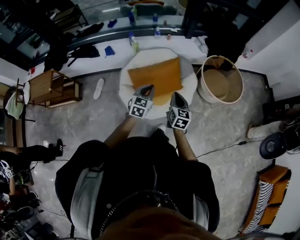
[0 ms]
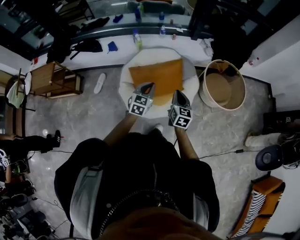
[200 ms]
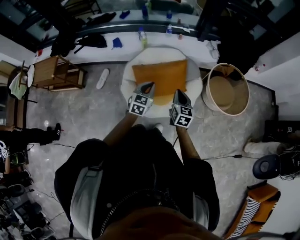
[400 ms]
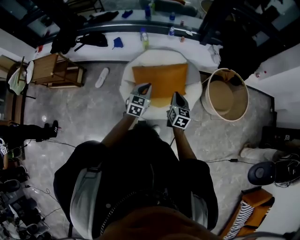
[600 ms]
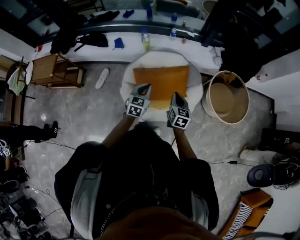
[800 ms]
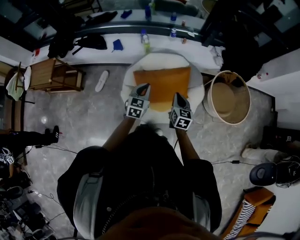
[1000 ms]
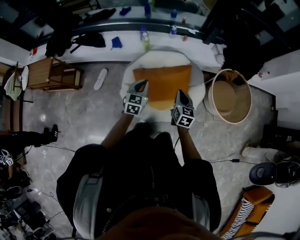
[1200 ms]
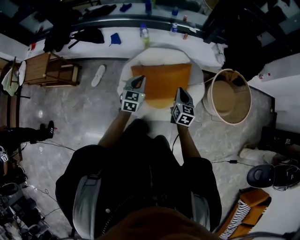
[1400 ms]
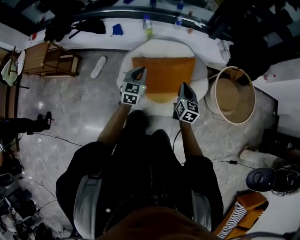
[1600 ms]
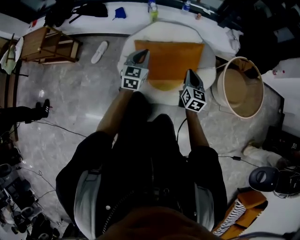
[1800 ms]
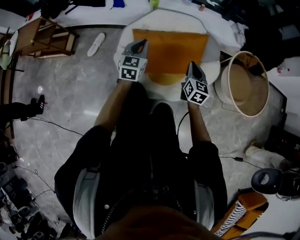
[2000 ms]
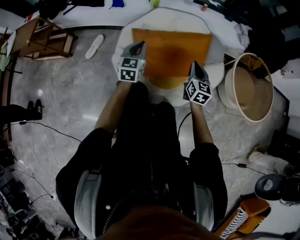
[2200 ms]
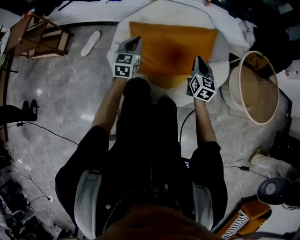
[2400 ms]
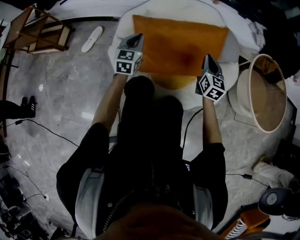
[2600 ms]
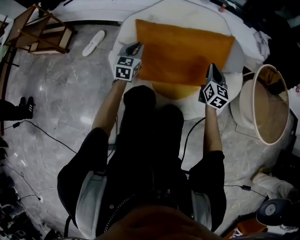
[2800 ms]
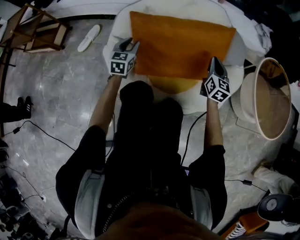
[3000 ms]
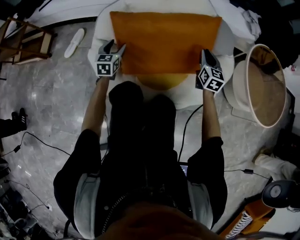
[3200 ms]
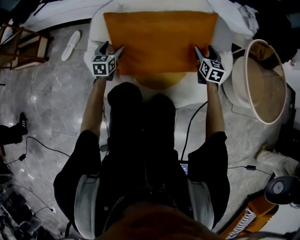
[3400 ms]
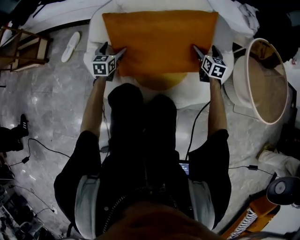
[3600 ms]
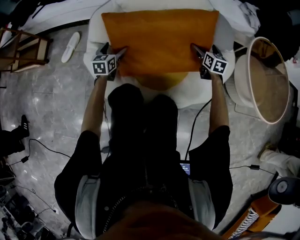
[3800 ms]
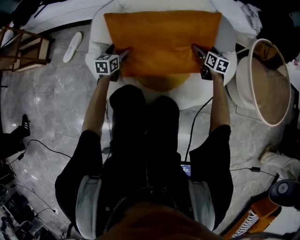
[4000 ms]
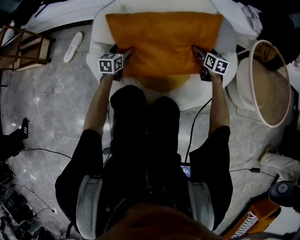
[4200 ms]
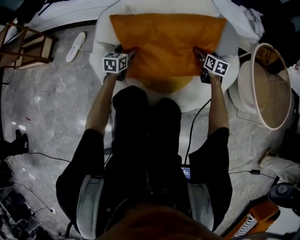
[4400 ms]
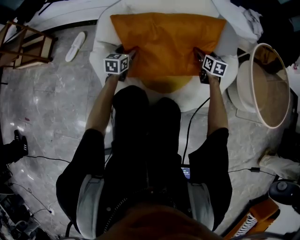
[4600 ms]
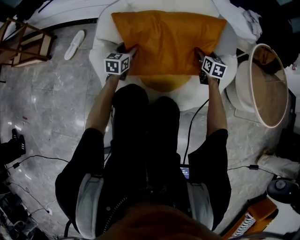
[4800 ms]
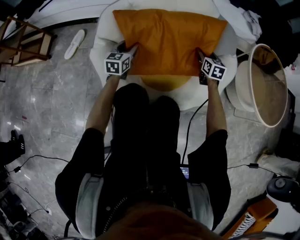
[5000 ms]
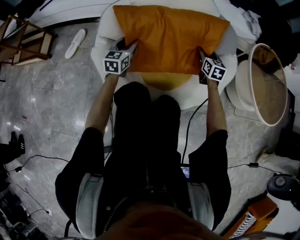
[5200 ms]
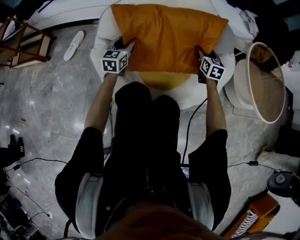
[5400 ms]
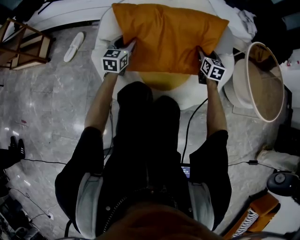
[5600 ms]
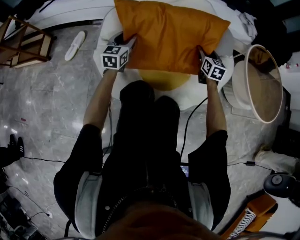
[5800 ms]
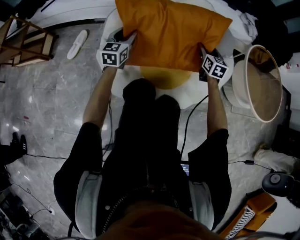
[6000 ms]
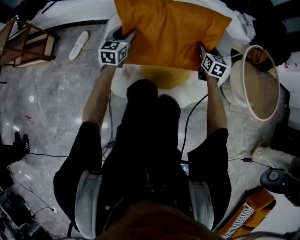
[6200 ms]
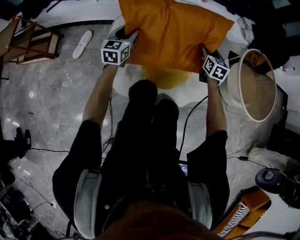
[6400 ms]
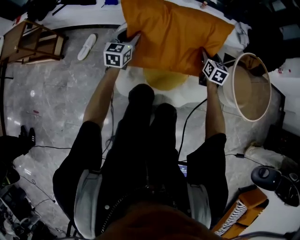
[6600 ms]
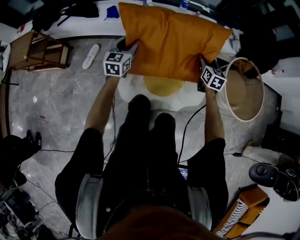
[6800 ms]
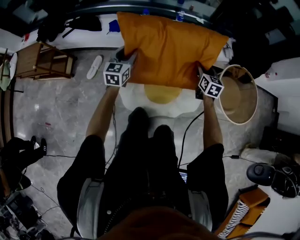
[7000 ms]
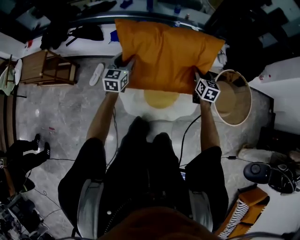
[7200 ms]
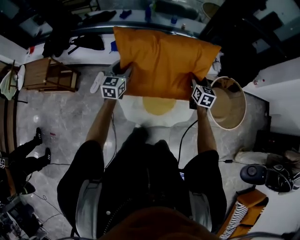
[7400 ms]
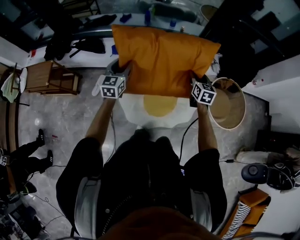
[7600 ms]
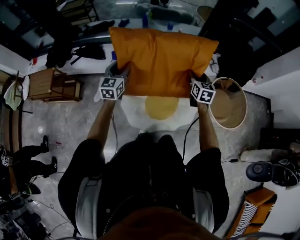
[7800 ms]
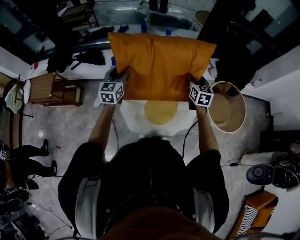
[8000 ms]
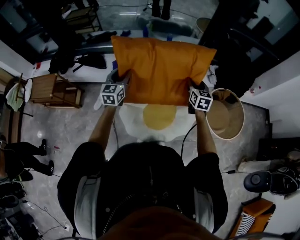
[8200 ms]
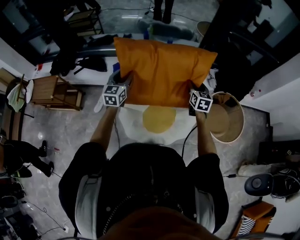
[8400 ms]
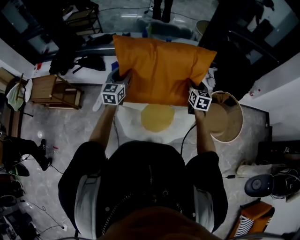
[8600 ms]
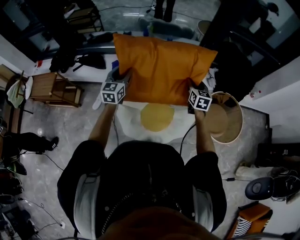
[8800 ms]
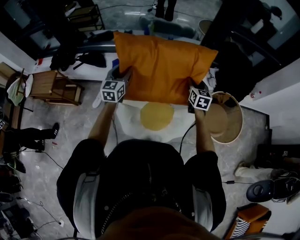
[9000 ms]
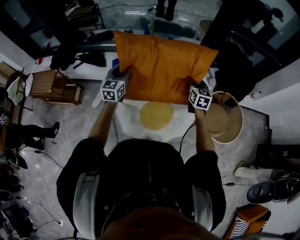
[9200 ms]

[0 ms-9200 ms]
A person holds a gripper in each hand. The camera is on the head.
0 ms to 1600 ms: The right gripper shifts about 20 cm forward and downward, while the left gripper goes roughly 20 cm forward, to the left and downward.
1600 ms to 3000 ms: Both grippers move downward, roughly 40 cm.
3000 ms to 4600 ms: The right gripper travels downward and forward by approximately 15 cm, changes its angle by some 20 degrees, and opens. The left gripper shifts some 10 cm downward, and opens and closes again.
4600 ms to 6200 ms: The two grippers go about 15 cm upward.
6200 ms to 7600 ms: Both grippers move upward, approximately 50 cm.
7600 ms to 9200 ms: The grippers both shift to the right by some 5 cm.

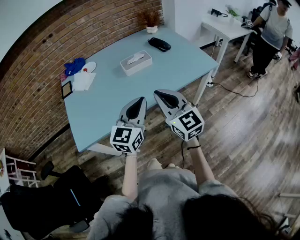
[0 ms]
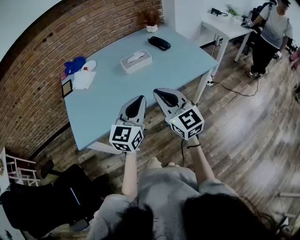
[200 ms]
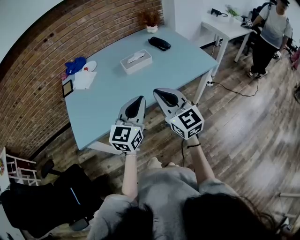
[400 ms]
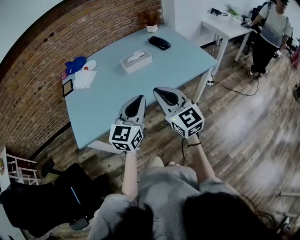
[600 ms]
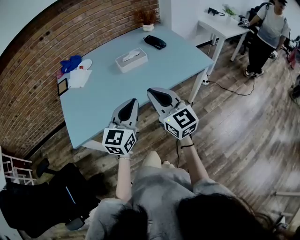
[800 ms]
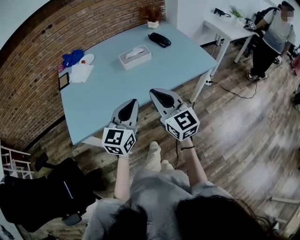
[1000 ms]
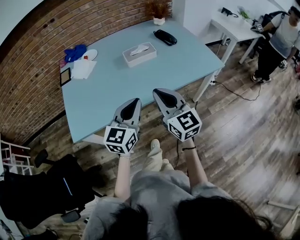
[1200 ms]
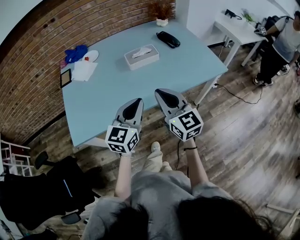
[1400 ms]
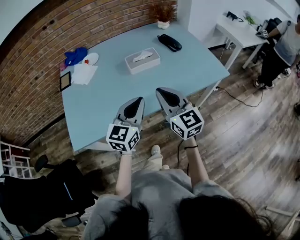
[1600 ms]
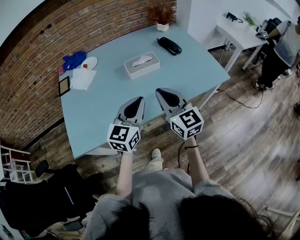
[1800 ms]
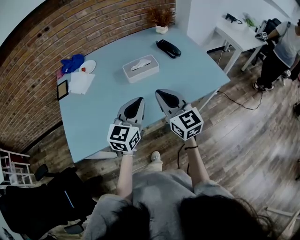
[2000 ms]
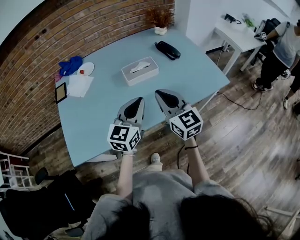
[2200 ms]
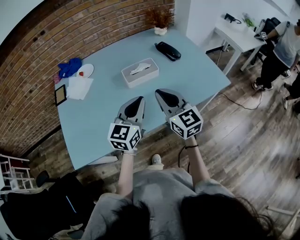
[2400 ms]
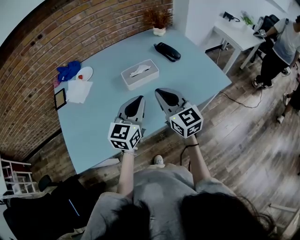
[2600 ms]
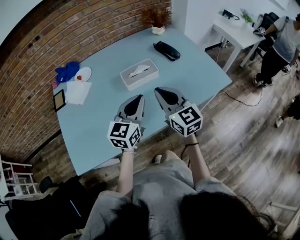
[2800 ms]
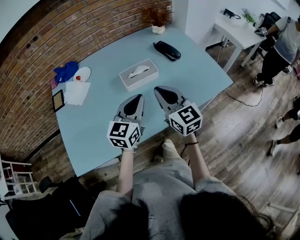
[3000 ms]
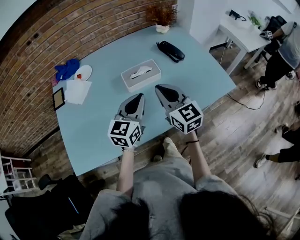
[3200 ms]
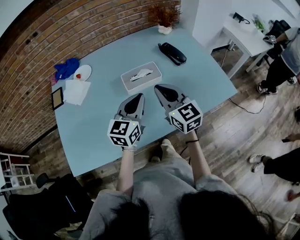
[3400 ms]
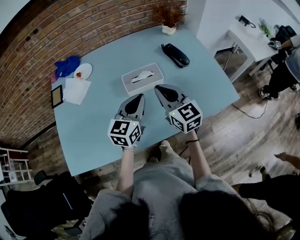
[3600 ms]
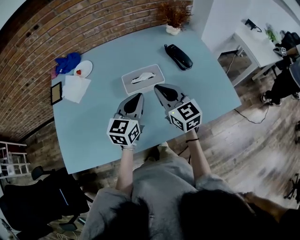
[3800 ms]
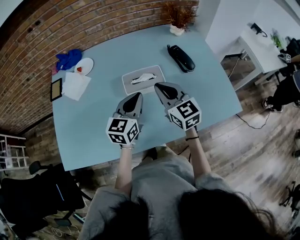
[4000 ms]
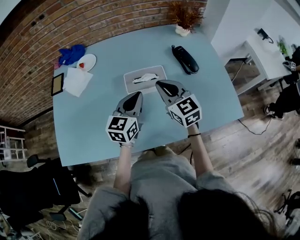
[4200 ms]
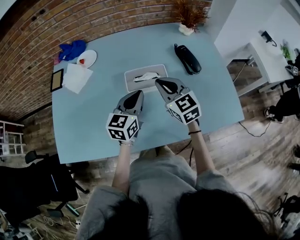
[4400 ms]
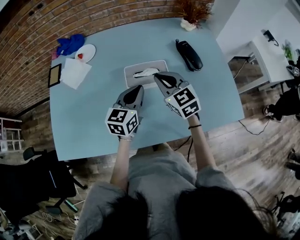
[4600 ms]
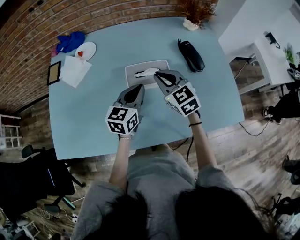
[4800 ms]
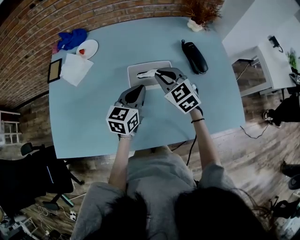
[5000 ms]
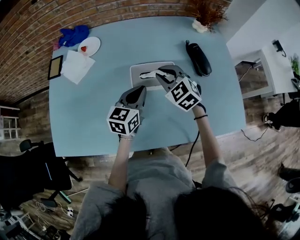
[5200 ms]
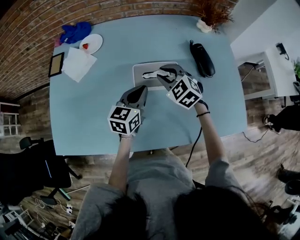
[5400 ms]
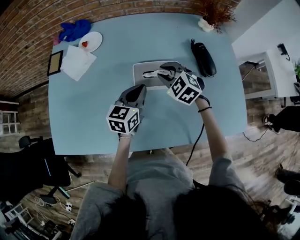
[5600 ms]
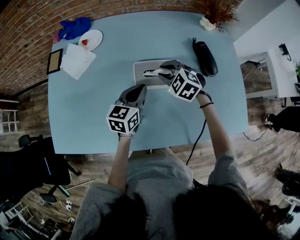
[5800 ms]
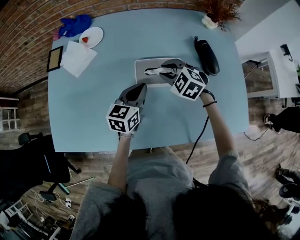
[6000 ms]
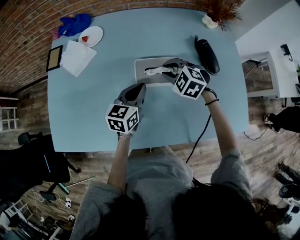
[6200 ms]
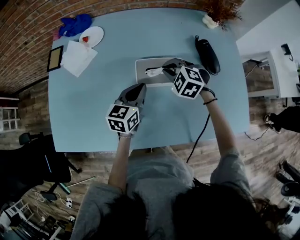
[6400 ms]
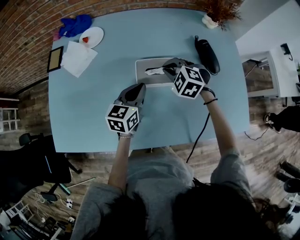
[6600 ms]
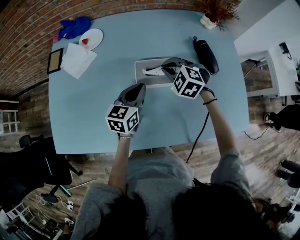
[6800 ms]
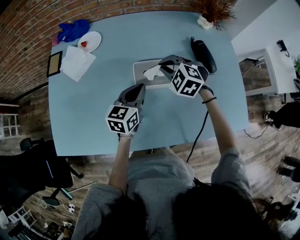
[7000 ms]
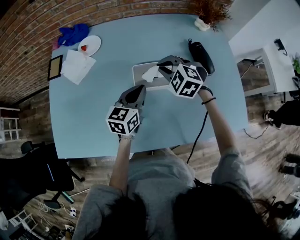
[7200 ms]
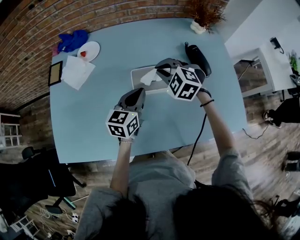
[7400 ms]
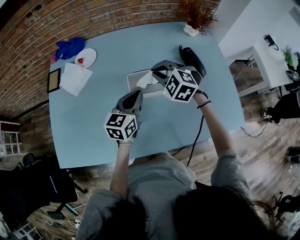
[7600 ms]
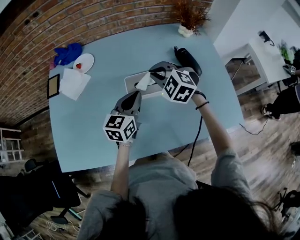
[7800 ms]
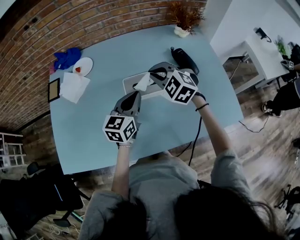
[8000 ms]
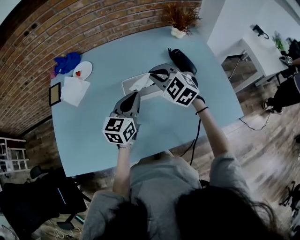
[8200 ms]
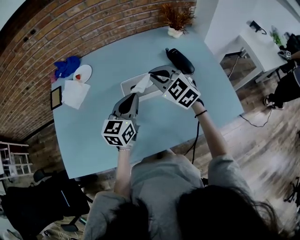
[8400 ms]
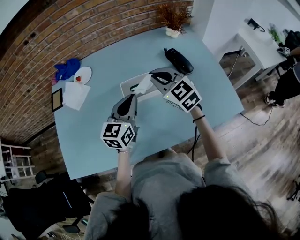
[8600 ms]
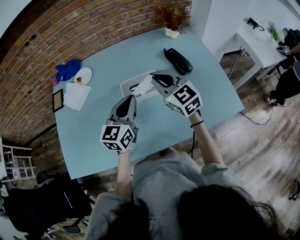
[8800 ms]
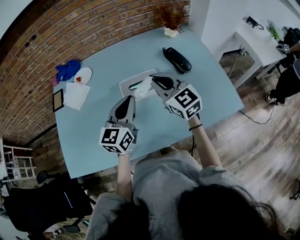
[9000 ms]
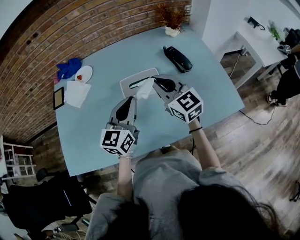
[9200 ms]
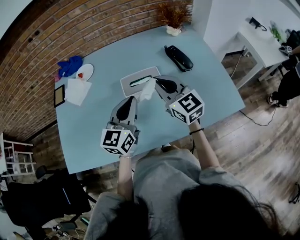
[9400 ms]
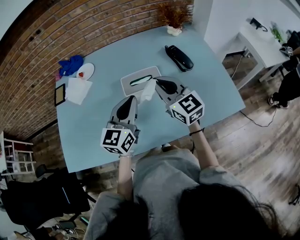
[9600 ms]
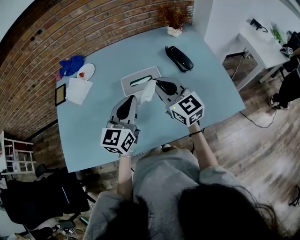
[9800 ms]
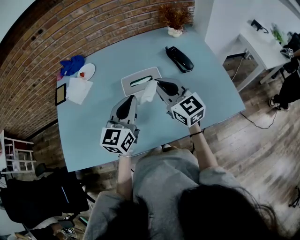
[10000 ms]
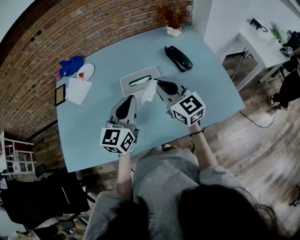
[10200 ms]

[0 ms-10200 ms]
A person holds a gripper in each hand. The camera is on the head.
0 ms to 1400 ms: The left gripper shifts by roughly 5 cm, while the right gripper is displaced forward by approximately 5 cm.
1400 ms to 3000 ms: Both grippers move forward, about 20 cm.
3000 ms to 4400 ms: The right gripper shifts some 15 cm forward, and changes its angle by about 20 degrees; the left gripper moves forward and downward, some 15 cm.
4400 ms to 5800 ms: The right gripper shifts roughly 15 cm downward and forward, and tilts its fingers roughly 30 degrees downward, while the left gripper heads downward and forward, covering about 10 cm.
5800 ms to 7200 ms: The right gripper ends up approximately 5 cm from where it was.
7200 ms to 8800 ms: The left gripper shifts approximately 10 cm upward and backward; the right gripper travels upward, backward and to the right by some 15 cm, and points its fingers about 40 degrees further upward.
8800 ms to 10200 ms: The right gripper travels backward by approximately 5 cm.

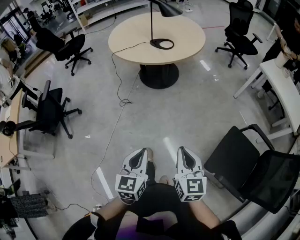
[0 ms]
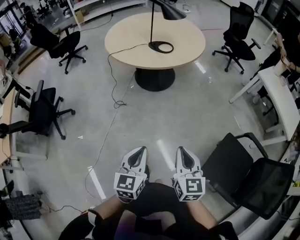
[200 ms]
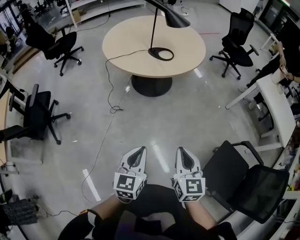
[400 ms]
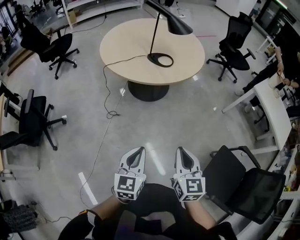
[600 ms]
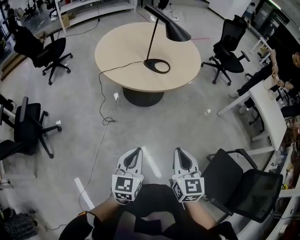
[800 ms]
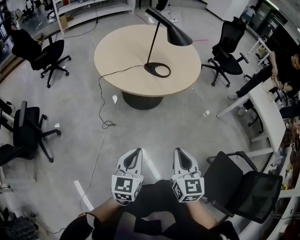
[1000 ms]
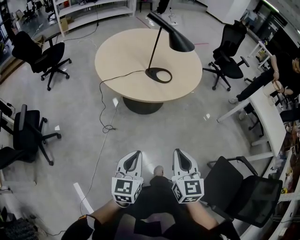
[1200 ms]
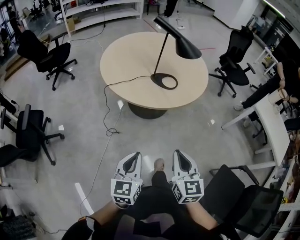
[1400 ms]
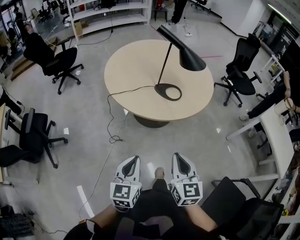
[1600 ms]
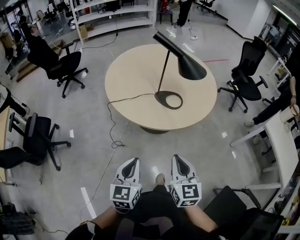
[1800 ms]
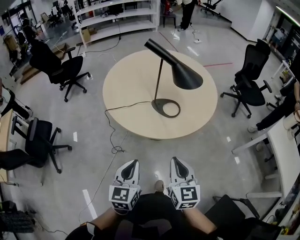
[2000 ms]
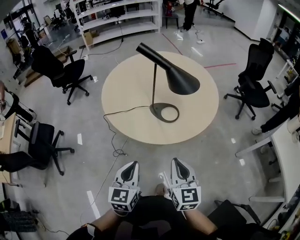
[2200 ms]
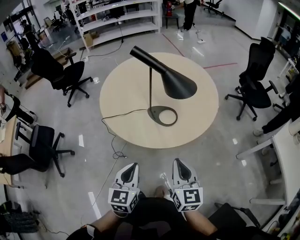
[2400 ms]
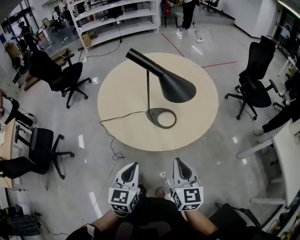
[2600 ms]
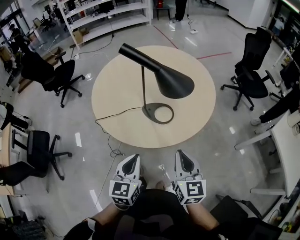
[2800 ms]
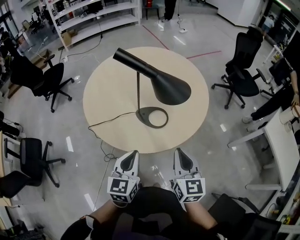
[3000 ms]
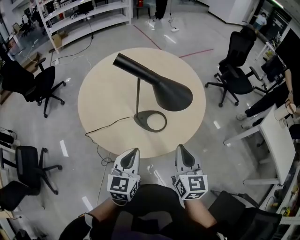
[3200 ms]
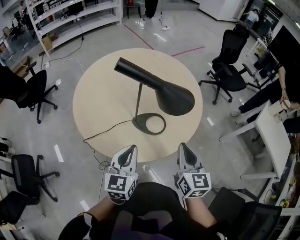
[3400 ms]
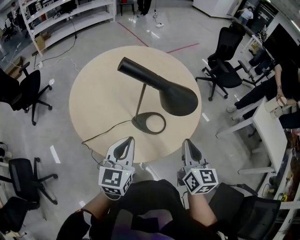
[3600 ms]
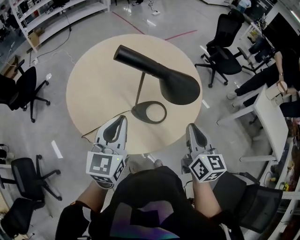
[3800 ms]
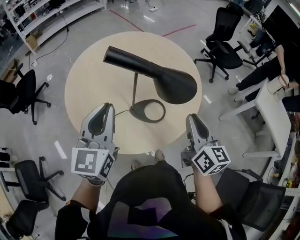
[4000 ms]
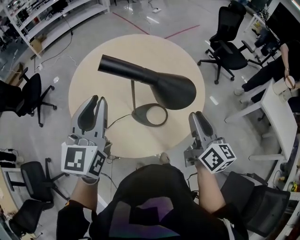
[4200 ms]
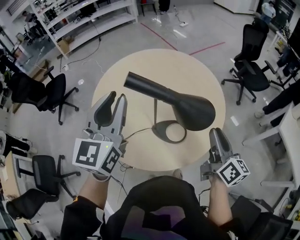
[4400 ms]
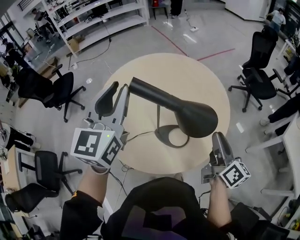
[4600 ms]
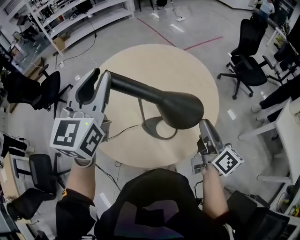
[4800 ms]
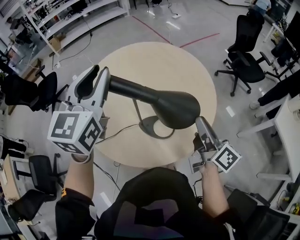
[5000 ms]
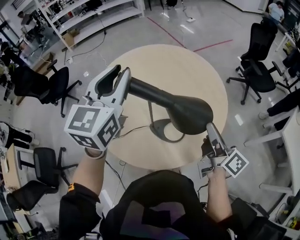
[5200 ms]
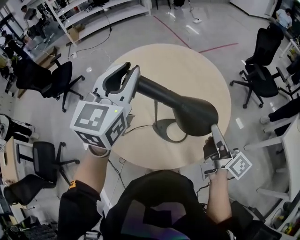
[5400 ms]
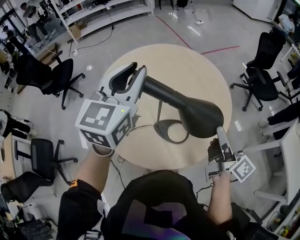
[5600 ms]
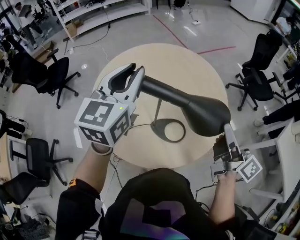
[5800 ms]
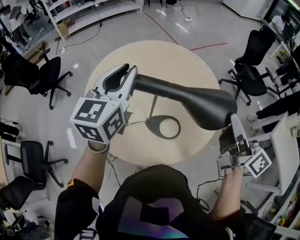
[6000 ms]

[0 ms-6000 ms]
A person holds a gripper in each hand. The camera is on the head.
0 ms to 1600 ms: The pair of grippers is taken forward and to the left, some 50 cm.
1600 ms to 3000 ms: The two grippers go approximately 35 cm forward and to the right.
3000 ms to 4400 ms: The right gripper goes about 20 cm forward, changes its angle by roughly 30 degrees, and opens its fingers, while the left gripper goes approximately 35 cm forward, upward and to the left, and changes its angle by some 20 degrees.
4400 ms to 6000 ms: The left gripper travels forward by roughly 5 cm; the right gripper goes about 10 cm upward, and turns by approximately 20 degrees.
